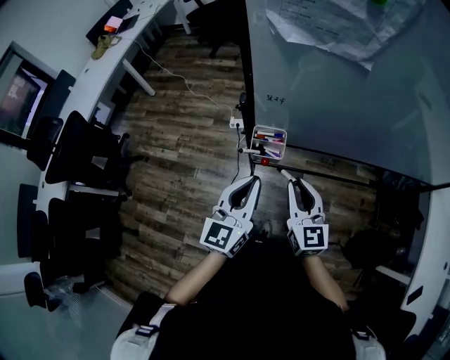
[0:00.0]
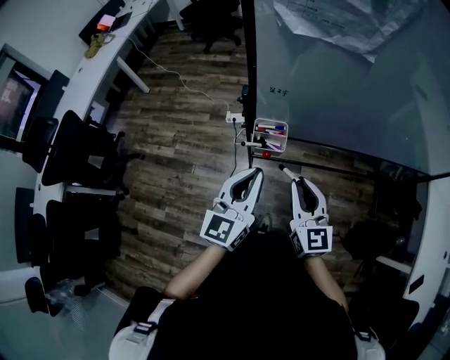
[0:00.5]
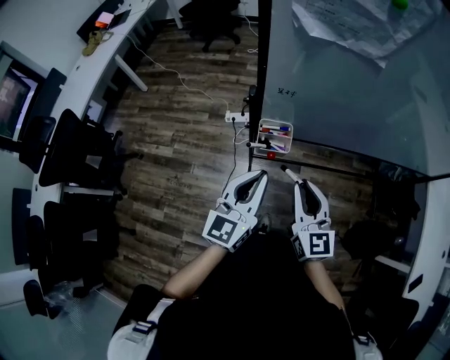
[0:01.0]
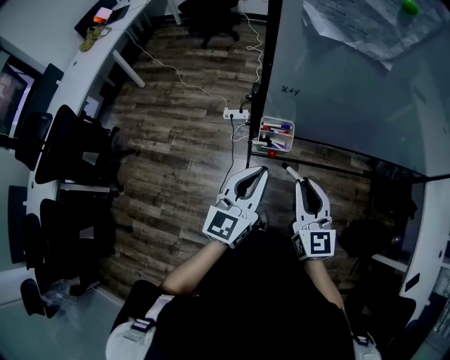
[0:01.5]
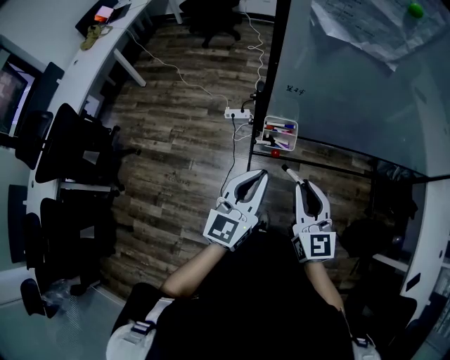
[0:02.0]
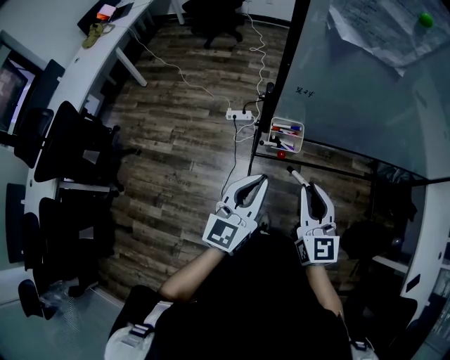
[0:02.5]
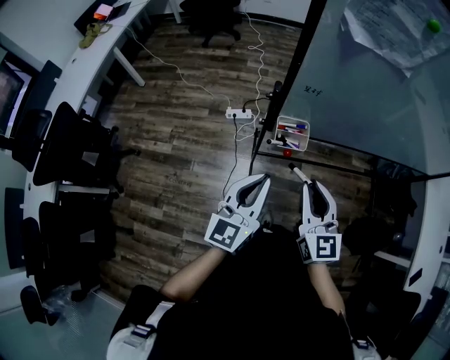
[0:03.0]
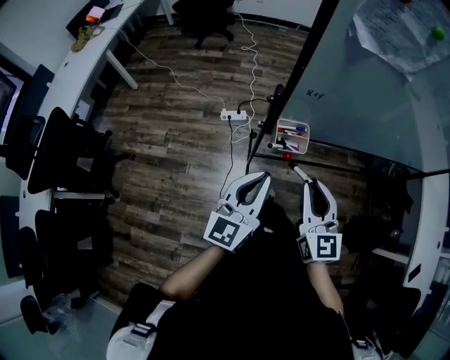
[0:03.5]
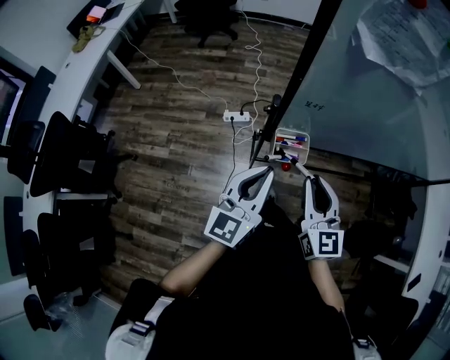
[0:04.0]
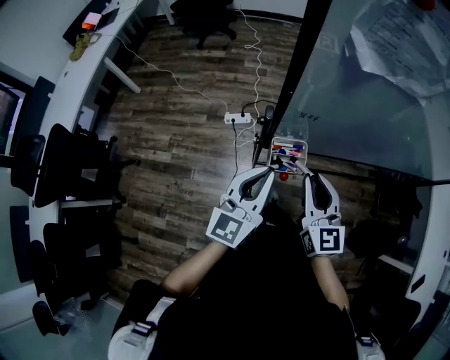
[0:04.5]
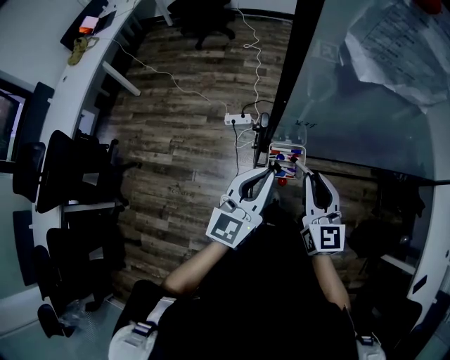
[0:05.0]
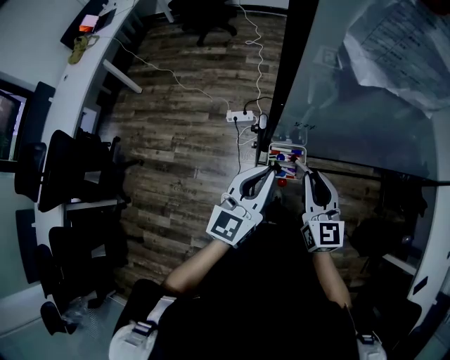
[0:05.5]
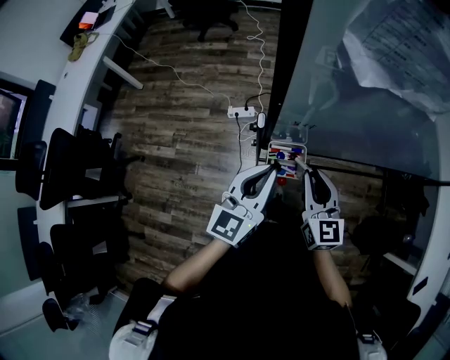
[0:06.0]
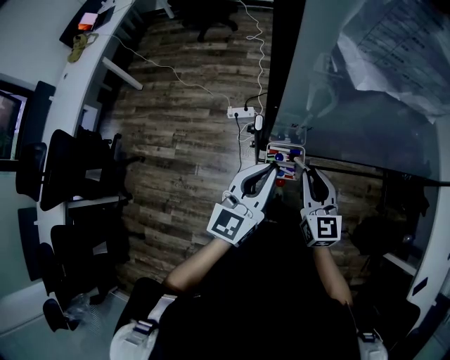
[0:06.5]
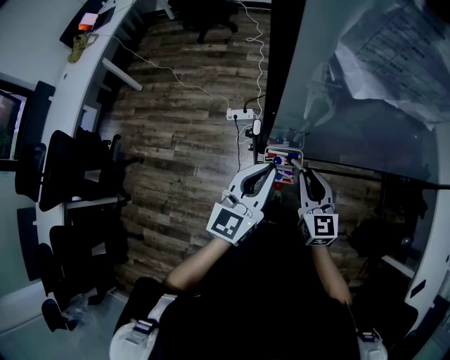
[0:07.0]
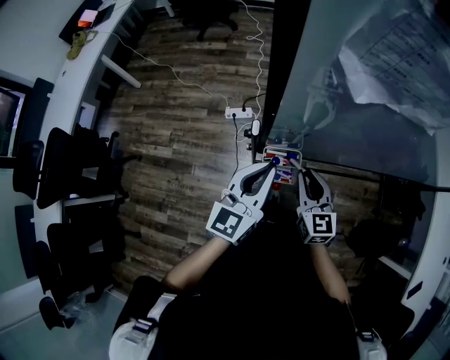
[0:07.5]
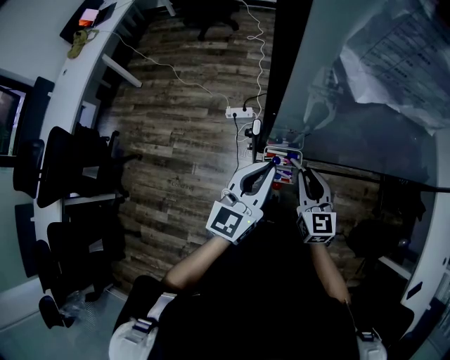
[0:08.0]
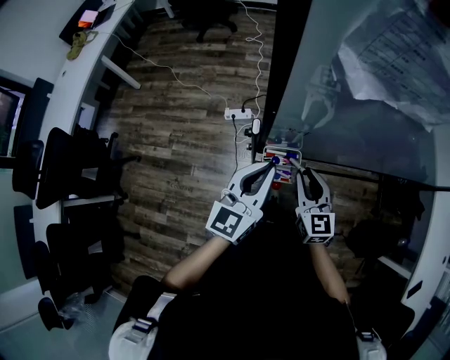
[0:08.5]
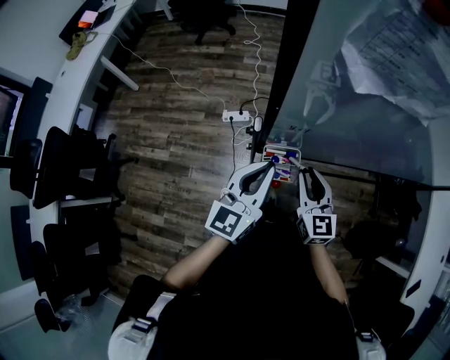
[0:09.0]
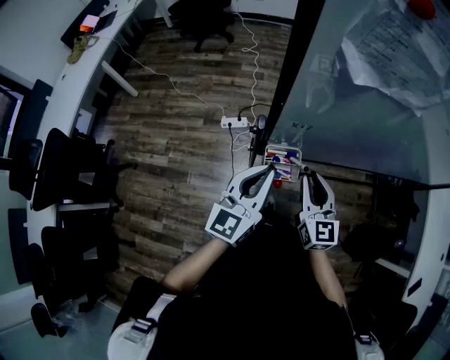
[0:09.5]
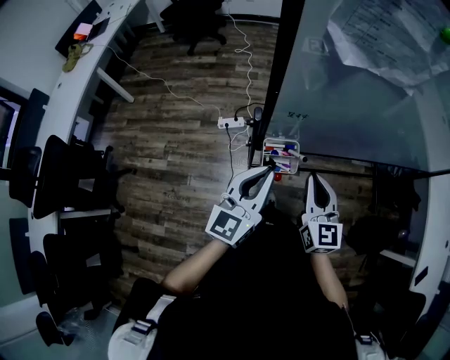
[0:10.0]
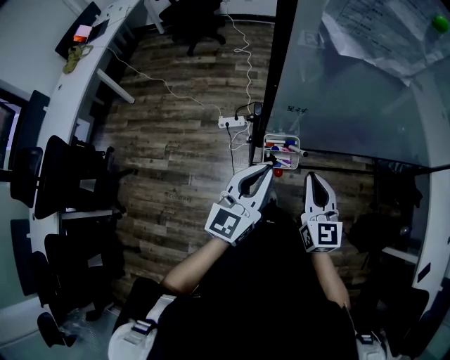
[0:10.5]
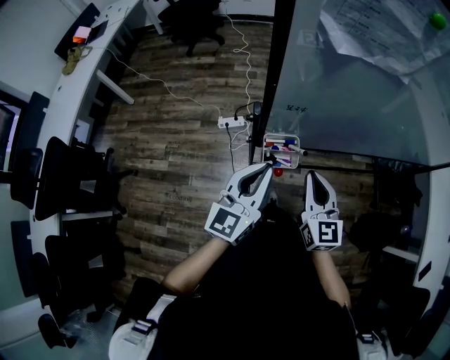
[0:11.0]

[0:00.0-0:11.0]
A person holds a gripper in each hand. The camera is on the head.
0:00.0 to 0:02.0: The right gripper changes place by approximately 5 cm.
0:02.0 to 0:03.5: The left gripper moves to the left, approximately 5 cm.
0:03.5 to 0:05.5: The right gripper travels forward and downward by about 15 cm. Meanwhile the left gripper moves forward, some 15 cm.
0:05.5 to 0:07.5: The right gripper shifts roughly 5 cm downward.
0:07.5 to 0:09.0: There are only small adjustments of the grippers.
0:09.0 to 0:11.0: Both grippers move backward, roughly 5 cm.

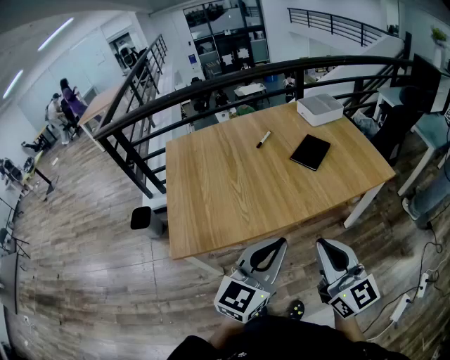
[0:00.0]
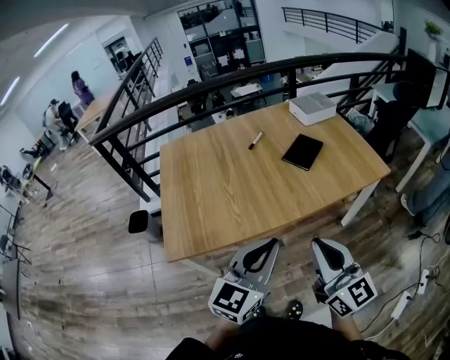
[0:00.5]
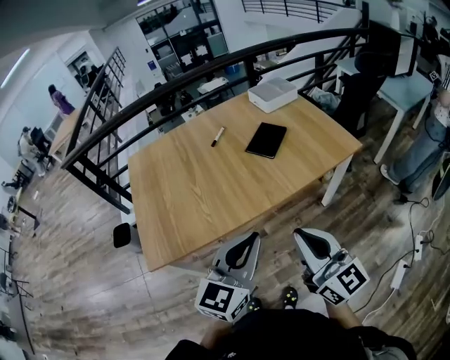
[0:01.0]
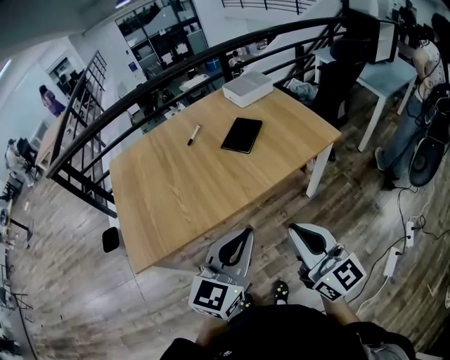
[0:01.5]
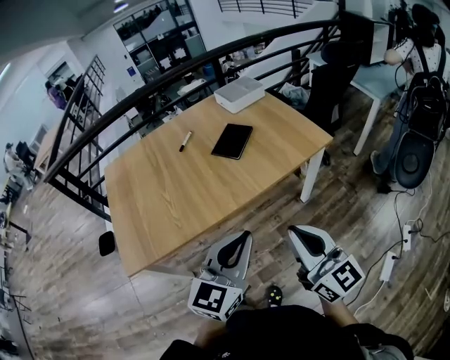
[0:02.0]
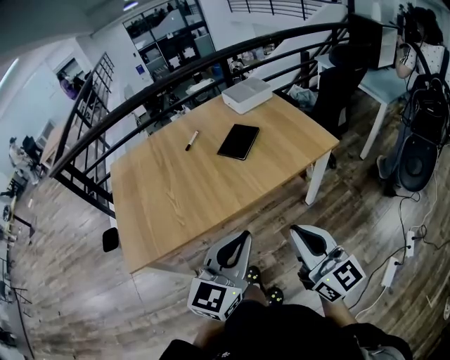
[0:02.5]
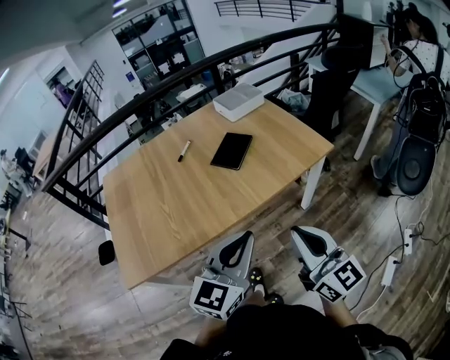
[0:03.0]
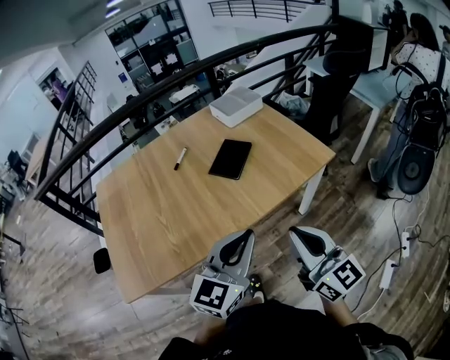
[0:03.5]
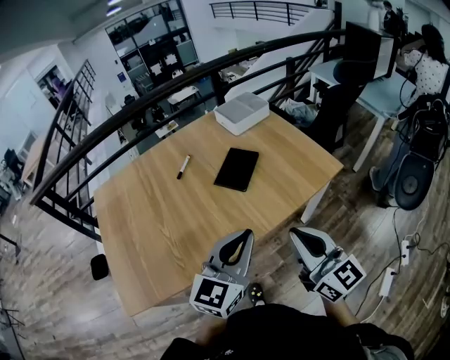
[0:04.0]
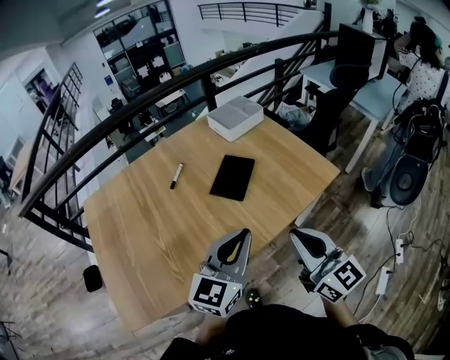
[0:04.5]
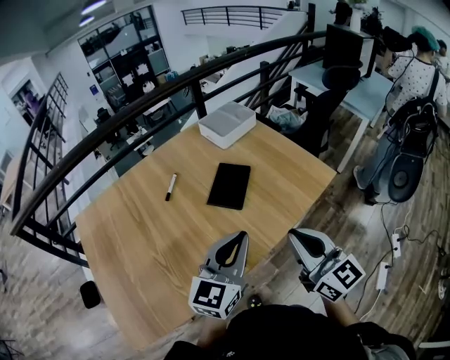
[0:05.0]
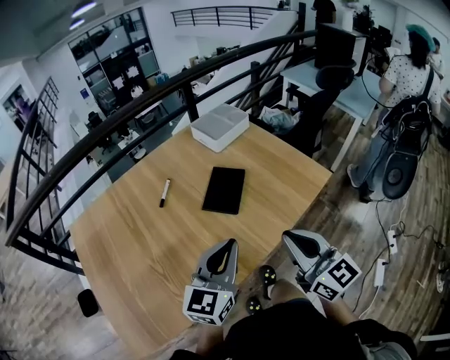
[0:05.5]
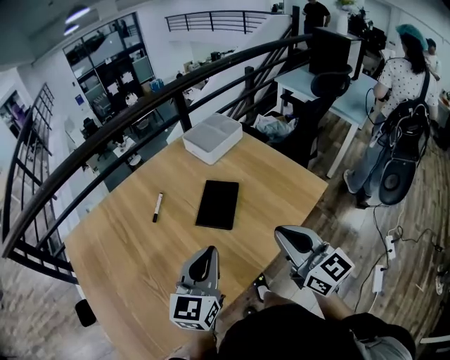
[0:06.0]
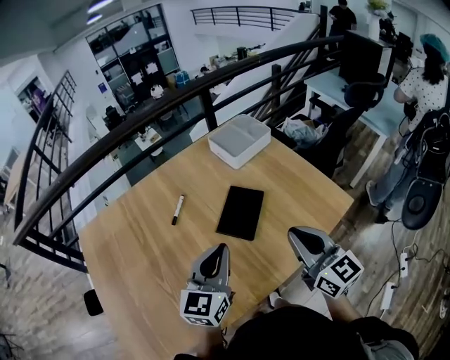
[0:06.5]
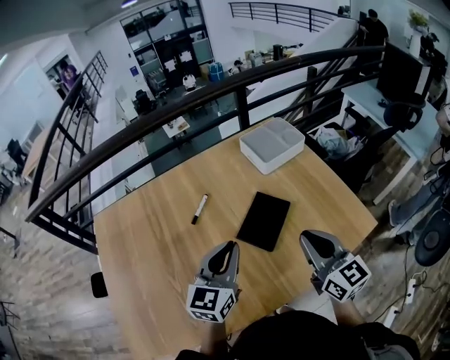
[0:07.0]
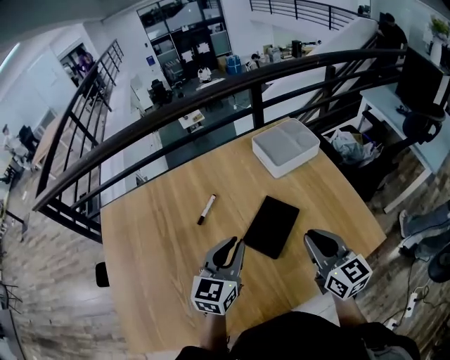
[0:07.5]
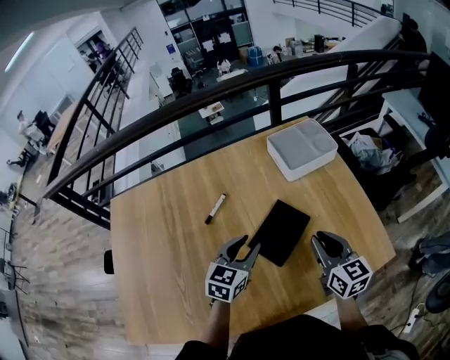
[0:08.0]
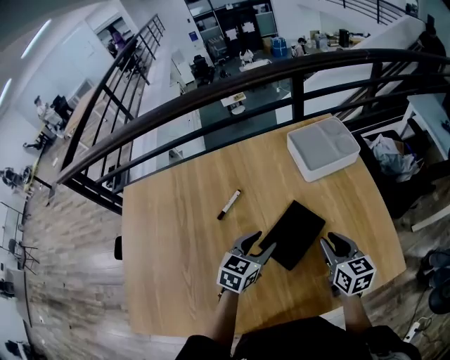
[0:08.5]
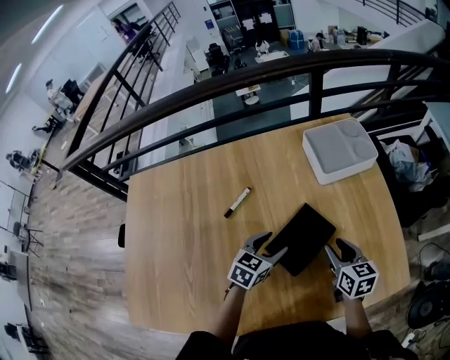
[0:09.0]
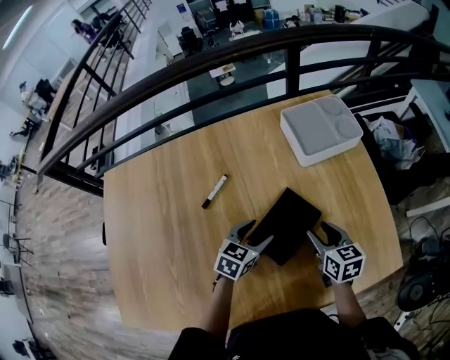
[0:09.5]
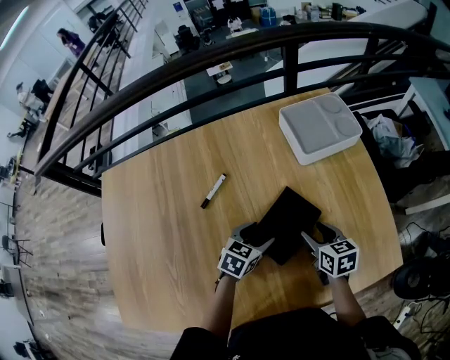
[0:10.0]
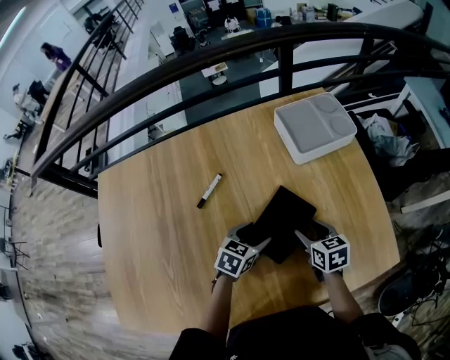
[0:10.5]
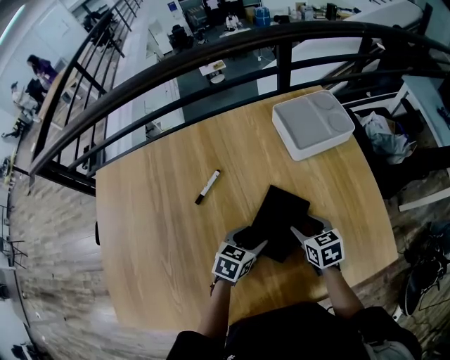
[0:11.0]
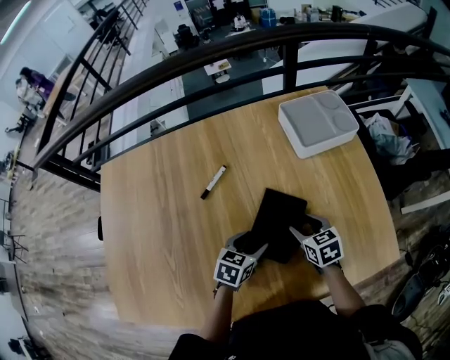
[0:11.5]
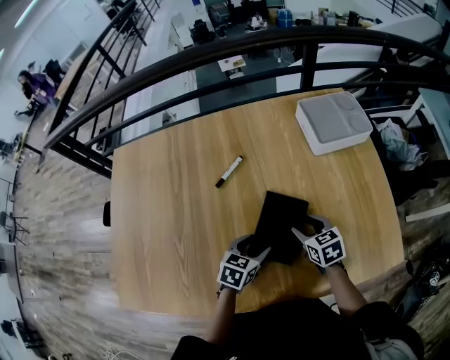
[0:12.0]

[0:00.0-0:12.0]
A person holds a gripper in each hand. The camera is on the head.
0:00.0 to 0:02.0: The grippers both shift to the right by about 20 cm.
0:02.0 to 0:04.0: Both grippers move forward, about 15 cm.
0:04.0 to 0:06.0: The right gripper heads forward, covering about 15 cm. Meanwhile the left gripper heads forward and to the left, covering approximately 15 cm.
0:06.0 to 0:08.0: Both grippers travel together forward and downward, approximately 25 cm. The right gripper turns by roughly 20 degrees. The left gripper swivels about 20 degrees, and opens.
0:08.0 to 0:10.0: The right gripper moves downward and forward, about 15 cm, changes its angle by about 30 degrees, and opens its fingers. The left gripper shifts roughly 15 cm downward, swivels roughly 20 degrees, and opens its fingers.
0:10.0 to 0:12.0: The left gripper goes approximately 10 cm backward. The right gripper travels to the left by approximately 5 cm.

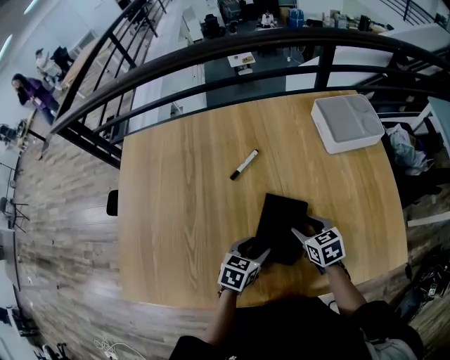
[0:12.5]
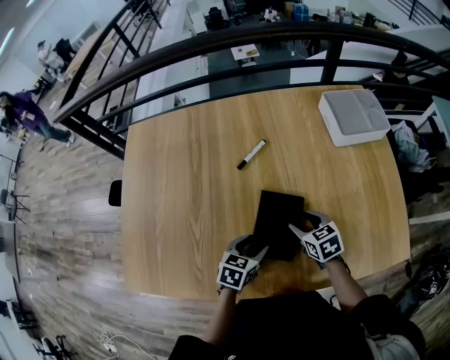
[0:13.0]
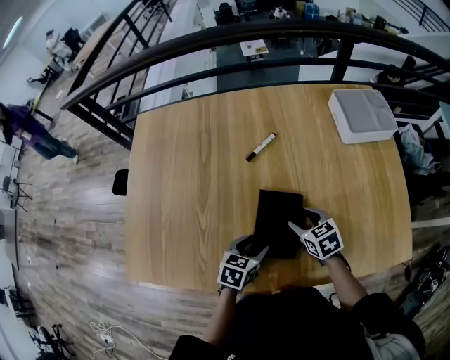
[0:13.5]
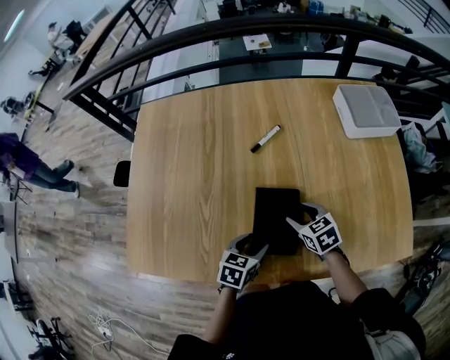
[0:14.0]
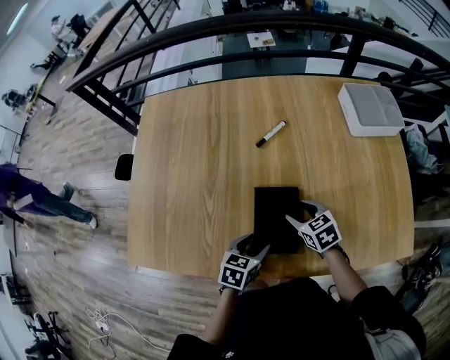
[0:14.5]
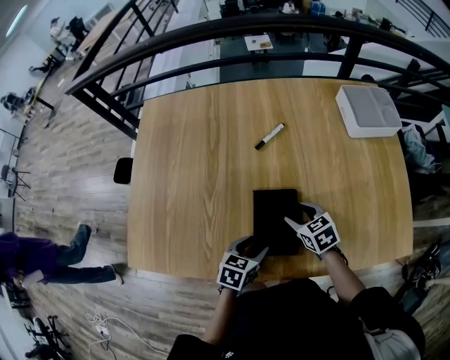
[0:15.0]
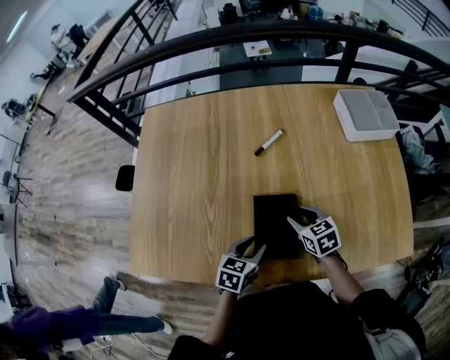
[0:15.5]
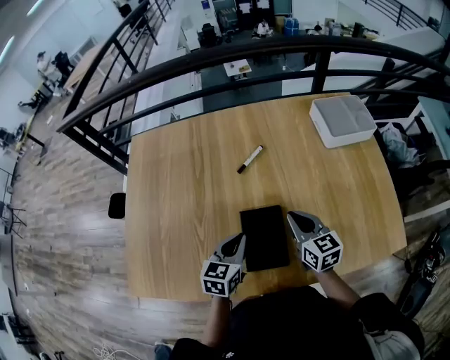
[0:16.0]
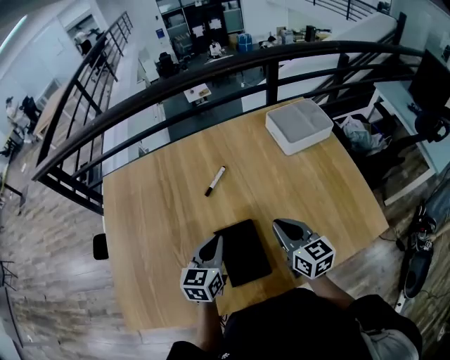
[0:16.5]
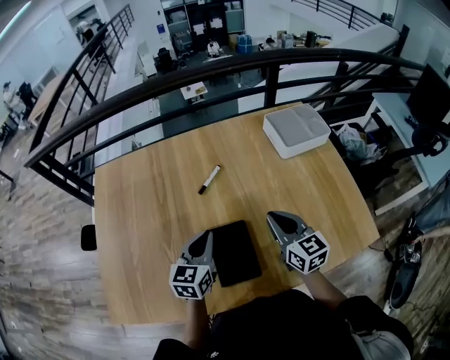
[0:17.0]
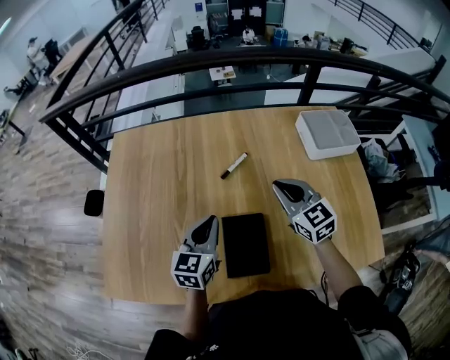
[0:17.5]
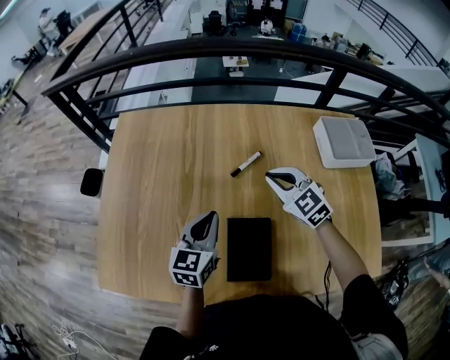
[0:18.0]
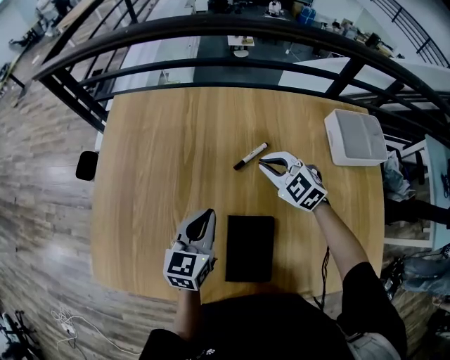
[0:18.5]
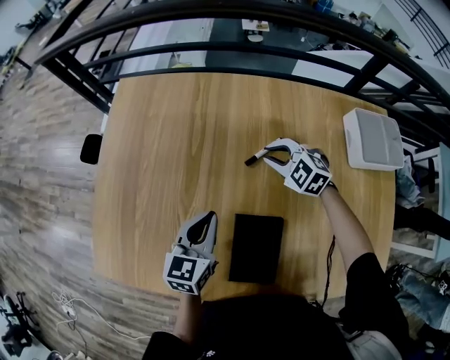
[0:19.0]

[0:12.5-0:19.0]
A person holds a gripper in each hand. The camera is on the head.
0:12.5 to 0:14.5: The left gripper goes some 10 cm backward and to the left, while the right gripper goes roughly 10 cm to the left.
0:14.5 to 0:17.0: The left gripper is displaced upward and forward by about 20 cm, changes its angle by some 30 degrees, and closes its fingers, while the right gripper goes roughly 20 cm upward and to the right, angles its fingers upward, by some 30 degrees, and closes.
0:17.0 to 0:19.0: The left gripper changes place by some 10 cm. Meanwhile the right gripper shifts by about 30 cm, and tilts its fingers roughly 30 degrees downward.
